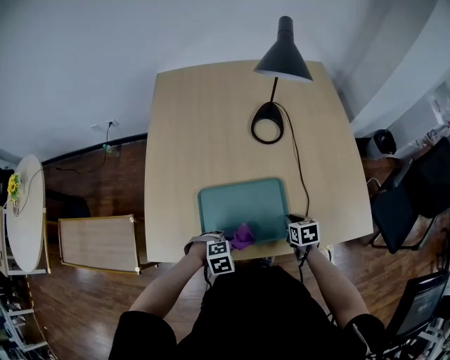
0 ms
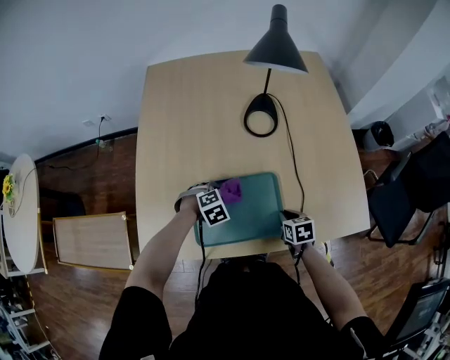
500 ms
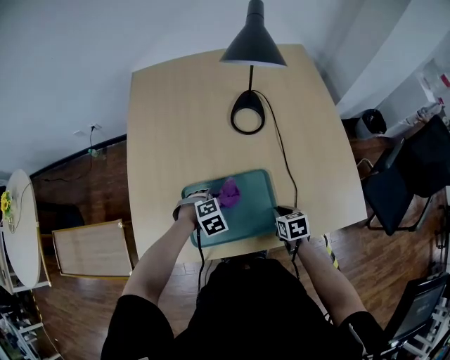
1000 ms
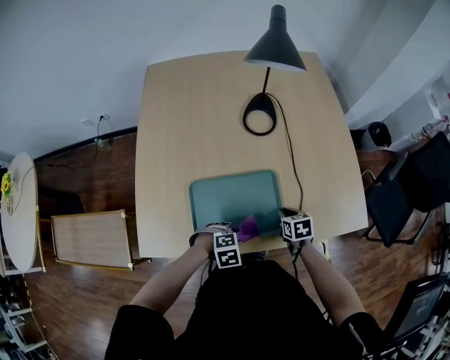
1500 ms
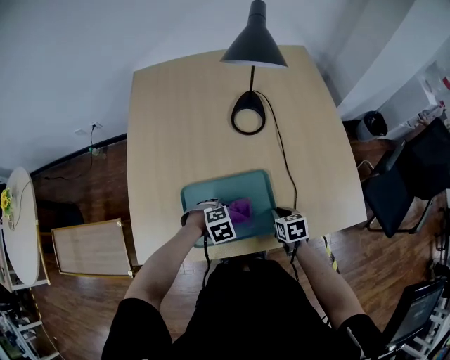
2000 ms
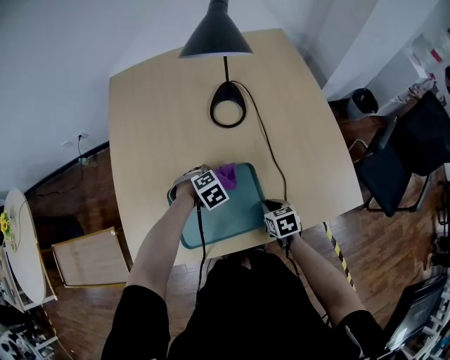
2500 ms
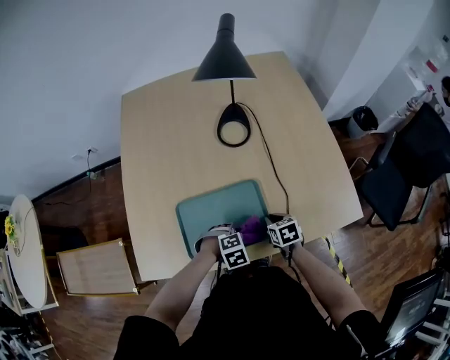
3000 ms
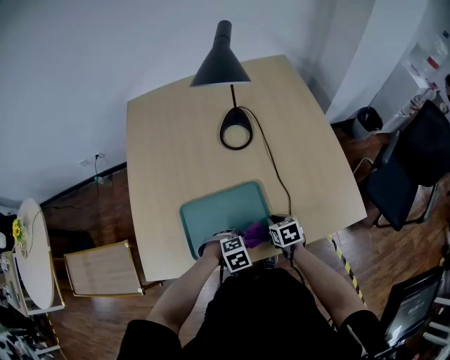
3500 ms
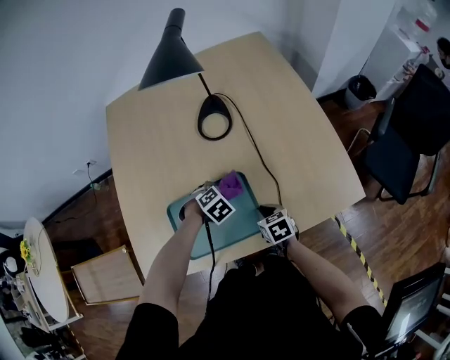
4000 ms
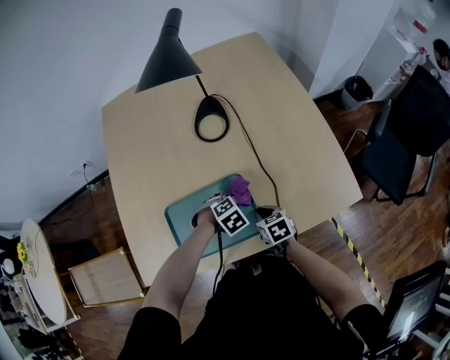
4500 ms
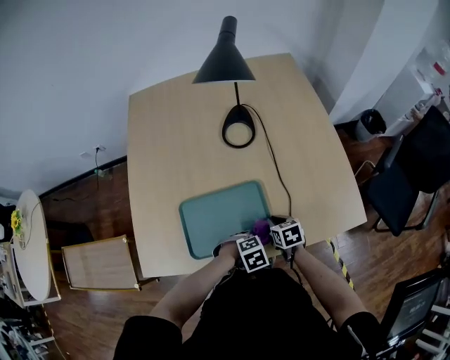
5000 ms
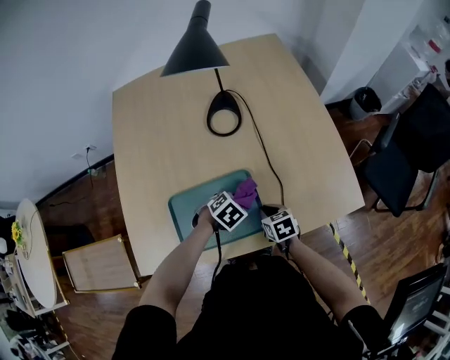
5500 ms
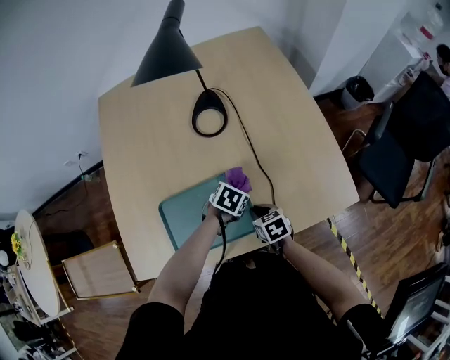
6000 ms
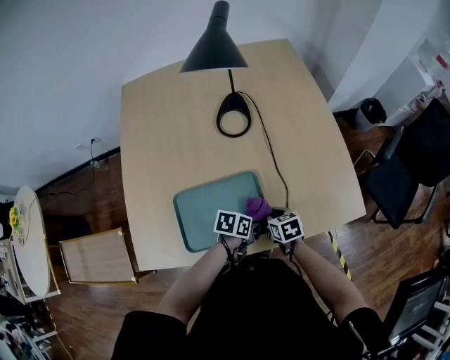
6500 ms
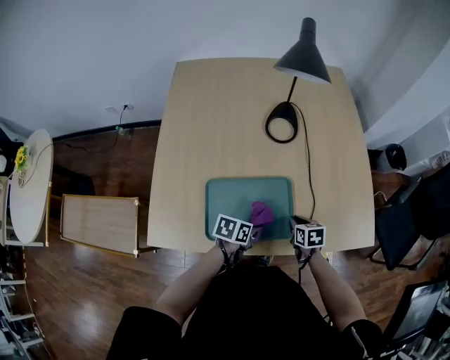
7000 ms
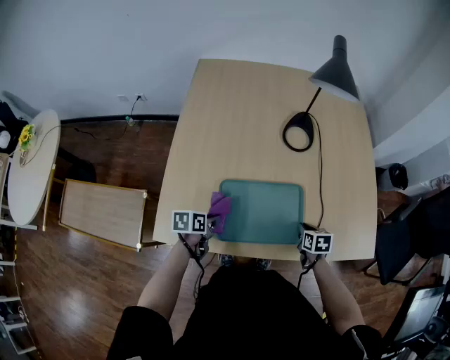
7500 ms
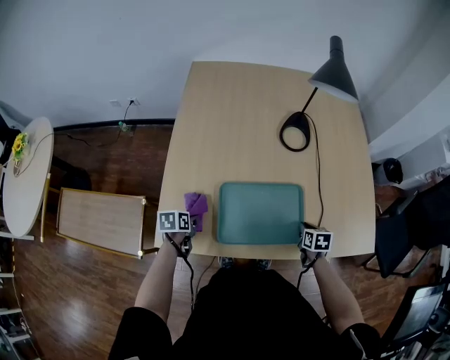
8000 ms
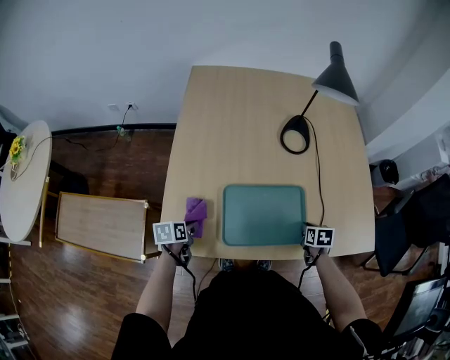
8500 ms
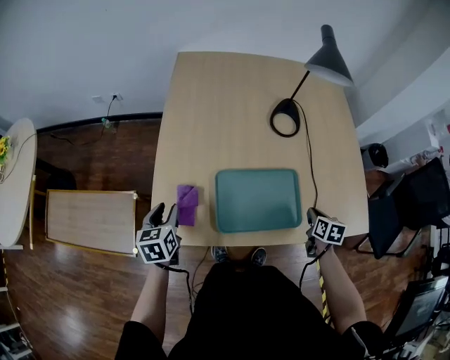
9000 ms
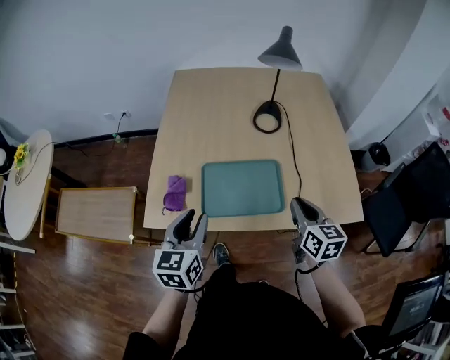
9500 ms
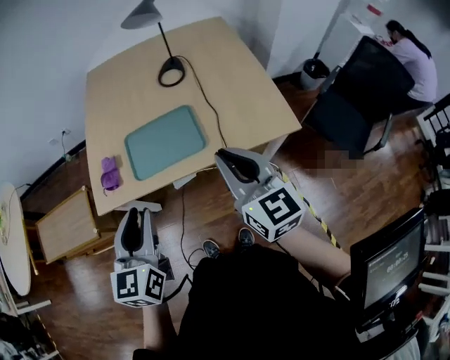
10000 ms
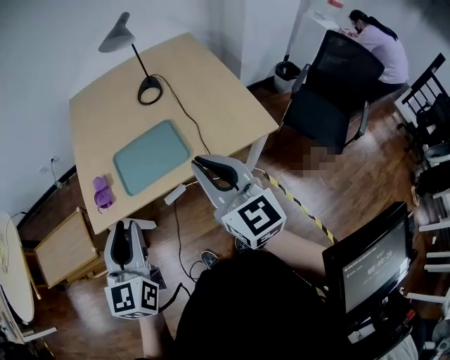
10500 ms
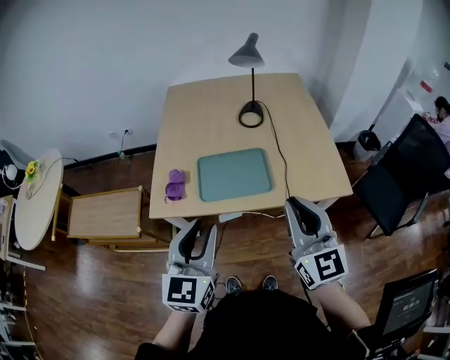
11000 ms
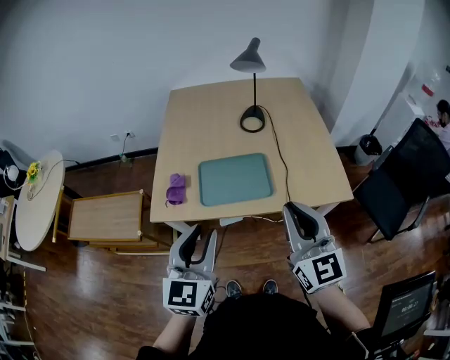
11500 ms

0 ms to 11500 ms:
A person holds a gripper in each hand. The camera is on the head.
2000 ms to 4000 ms: The left gripper moves roughly 10 cm.
4000 ms to 6000 ms: The left gripper swivels roughly 40 degrees.
6000 ms to 7500 ms: The left gripper goes roughly 30 cm to the left and backward, and rolls counterclockwise, seen from behind, by about 50 degrees.
7500 ms to 9500 ms: The grippers both shift upward by about 25 cm. The left gripper swivels about 50 degrees. Meanwhile the right gripper tilts its fingers some 40 degrees upward.
9500 ms to 11500 ms: The right gripper shifts roughly 25 cm upward and backward, and turns by some 30 degrees, while the left gripper heads backward, upward and to the right, covering about 20 cm.

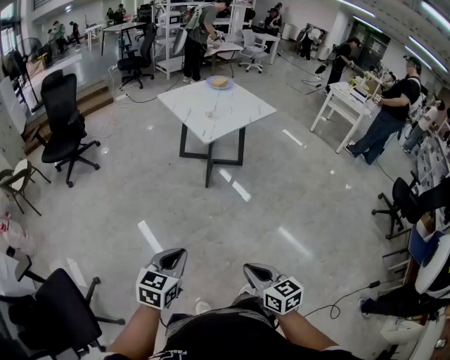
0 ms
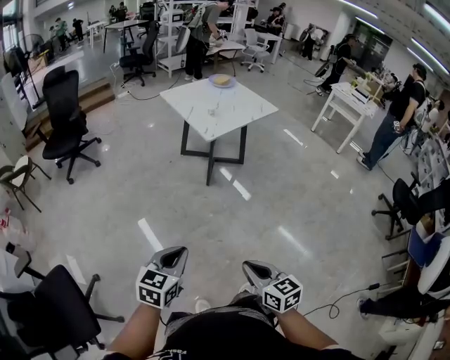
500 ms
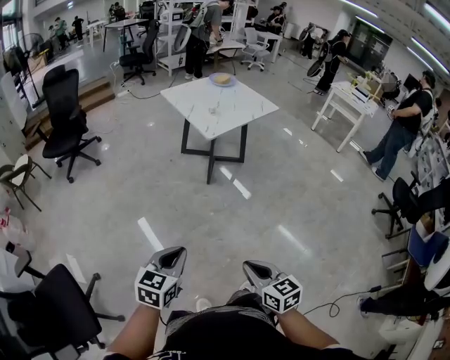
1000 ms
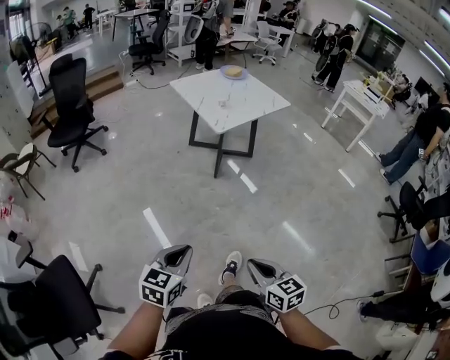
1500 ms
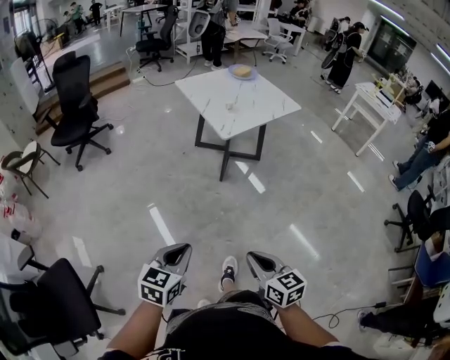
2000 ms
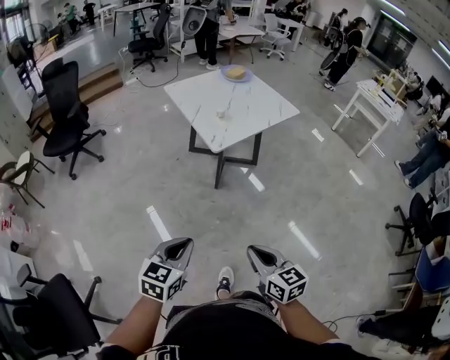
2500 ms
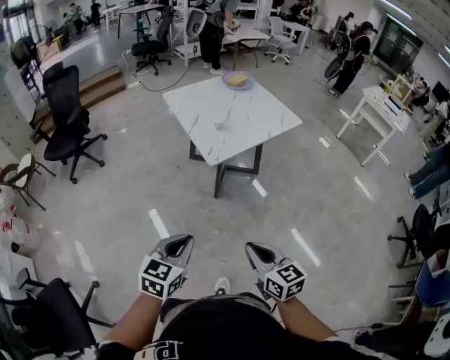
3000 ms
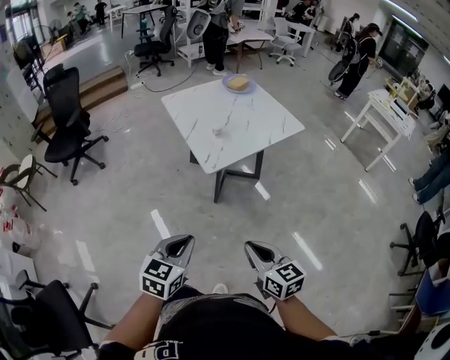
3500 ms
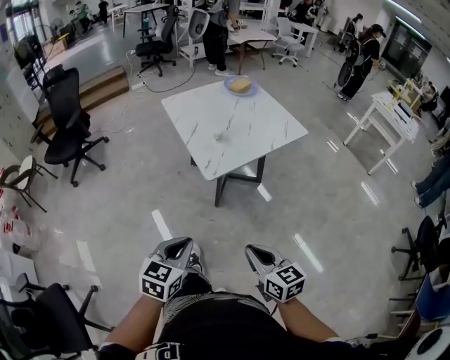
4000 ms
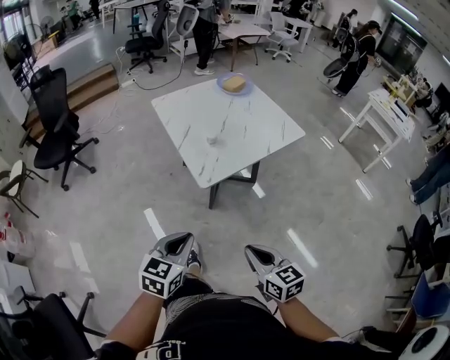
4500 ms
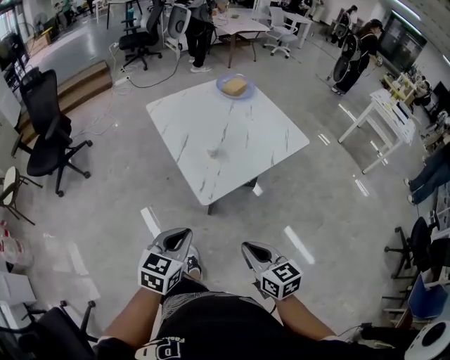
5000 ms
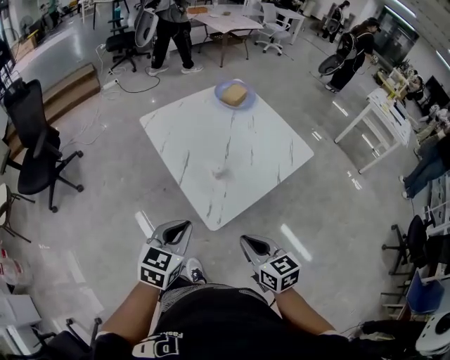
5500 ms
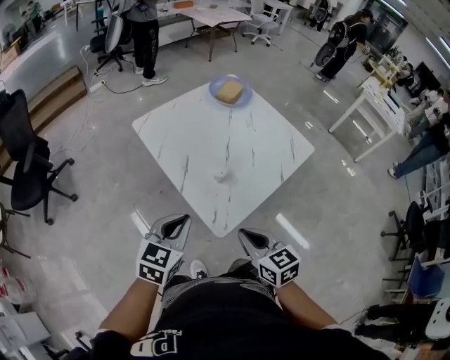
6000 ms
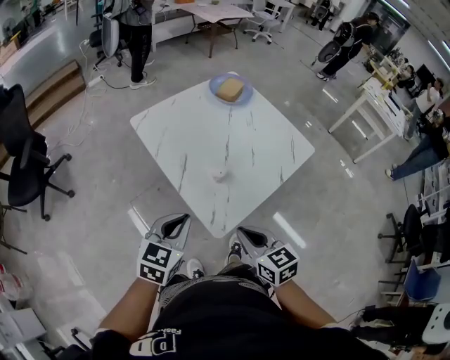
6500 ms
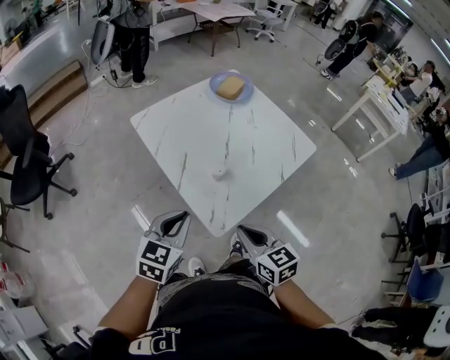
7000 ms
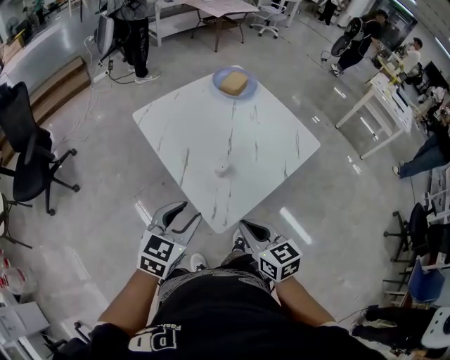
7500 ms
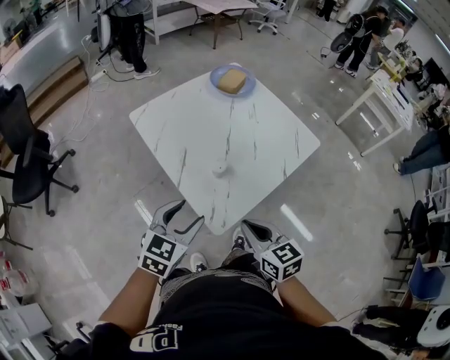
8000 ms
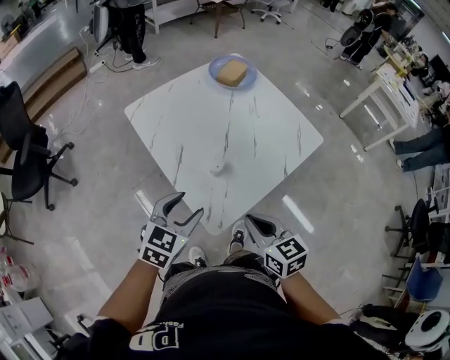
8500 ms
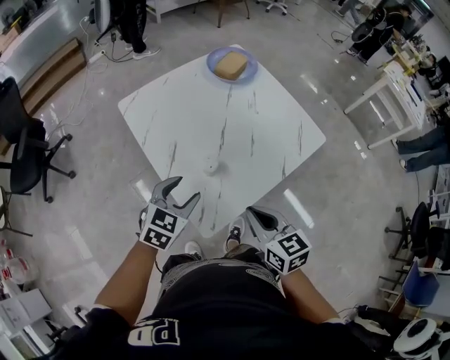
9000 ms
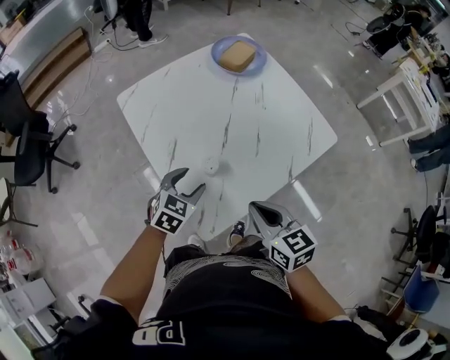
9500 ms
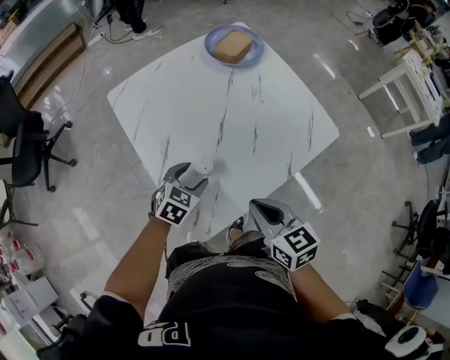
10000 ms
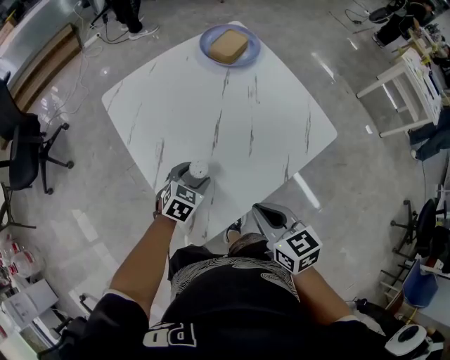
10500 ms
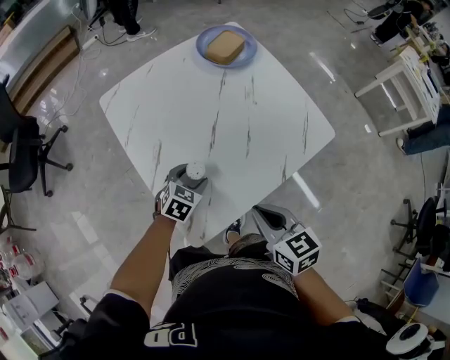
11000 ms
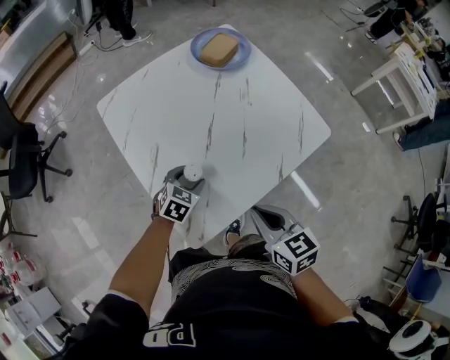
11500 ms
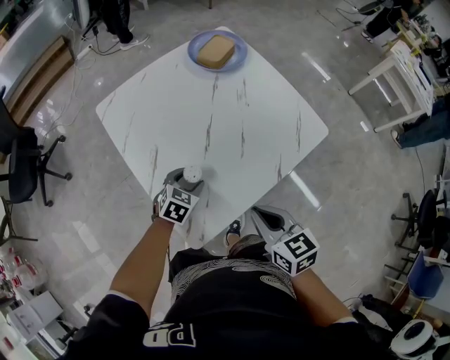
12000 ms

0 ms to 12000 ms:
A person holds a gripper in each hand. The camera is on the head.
0 ms to 2000 ms: The left gripper travels forward by some 5 cm. Meanwhile the right gripper travels forward by approximately 10 cm.
2000 ms to 4000 ms: The left gripper goes about 30 cm forward and to the right, while the right gripper is displaced forward by roughly 30 cm.
4000 ms to 6000 ms: The two grippers go about 35 cm forward.
6000 ms to 8000 ms: The left gripper opens its fingers.
8000 ms to 10000 ms: The left gripper goes some 25 cm downward, forward and to the right. The right gripper heads forward and to the right, covering roughly 15 cm.
10000 ms to 12000 ms: The grippers stay close to where they were, moving slightly.

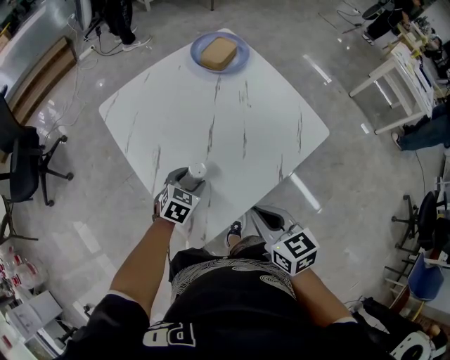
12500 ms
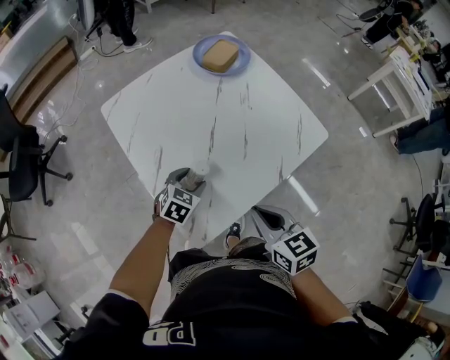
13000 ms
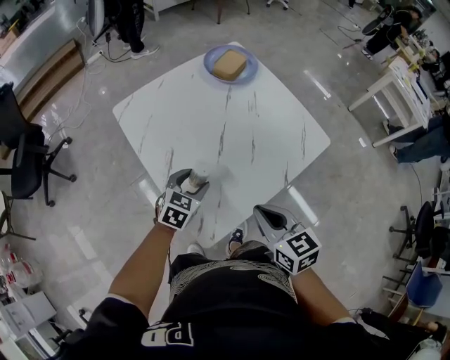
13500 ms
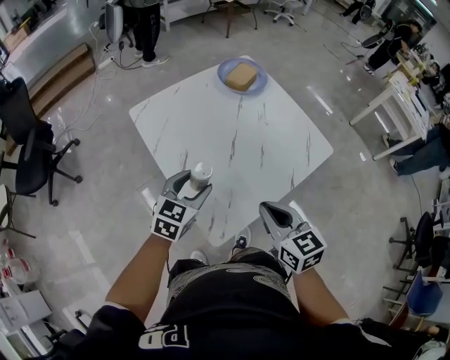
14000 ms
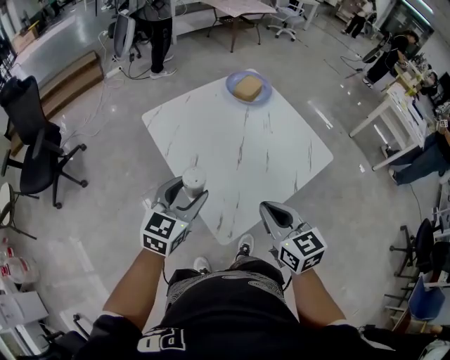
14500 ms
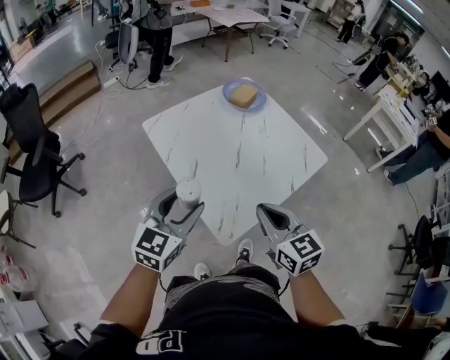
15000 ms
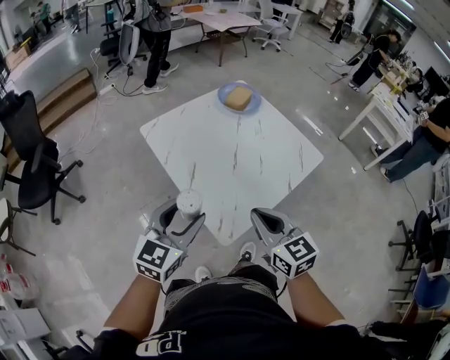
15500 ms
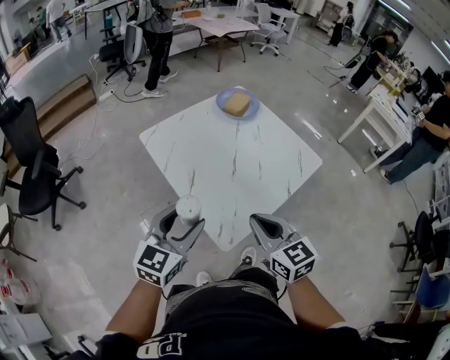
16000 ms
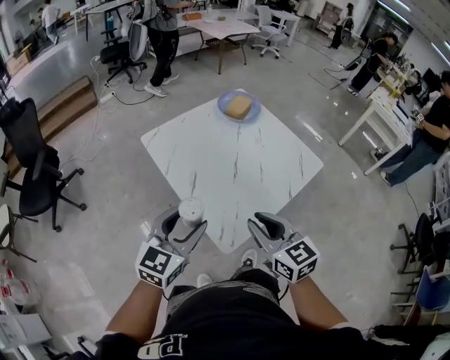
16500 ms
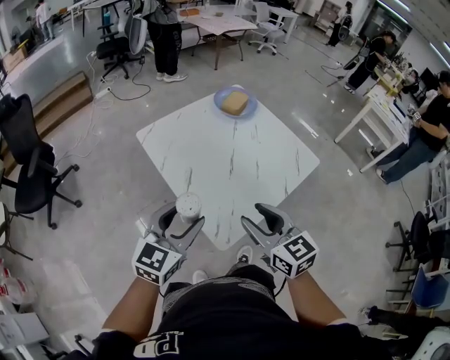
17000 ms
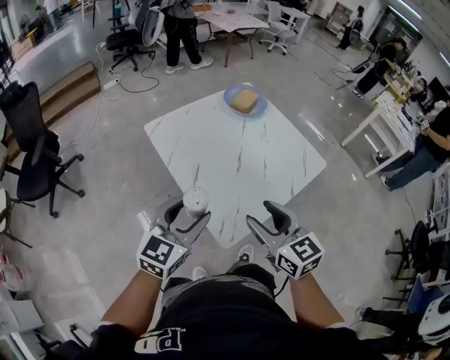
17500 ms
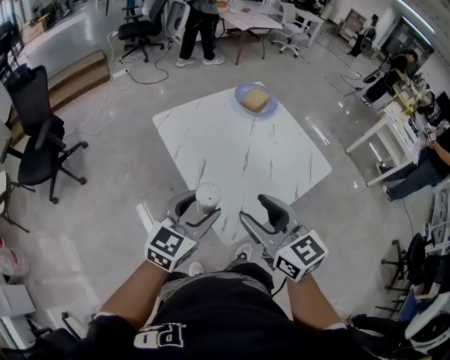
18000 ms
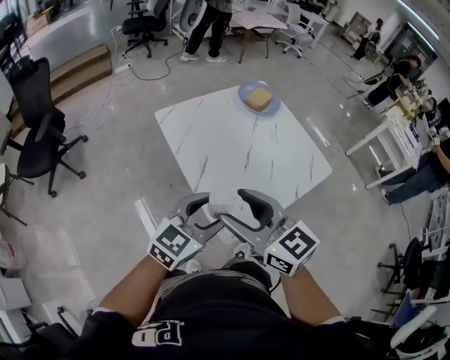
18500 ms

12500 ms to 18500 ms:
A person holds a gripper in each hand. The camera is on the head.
12500 ms to 14500 ms: The left gripper goes some 25 cm upward and to the left, and points its fingers approximately 30 degrees further upward; the right gripper is displaced upward and to the left by approximately 15 cm.
14500 ms to 16500 ms: The right gripper ends up about 5 cm from where it was, while the left gripper moves backward, some 5 cm.
16500 ms to 18500 ms: The right gripper moves to the left and upward, roughly 15 cm, swivels some 20 degrees, and opens its fingers.
